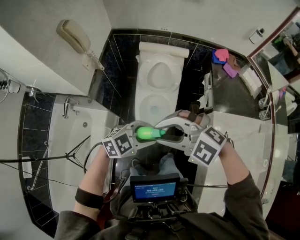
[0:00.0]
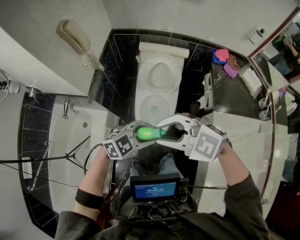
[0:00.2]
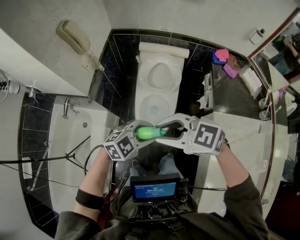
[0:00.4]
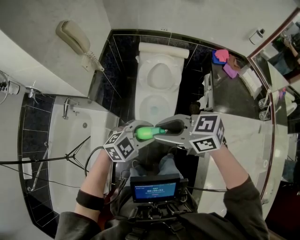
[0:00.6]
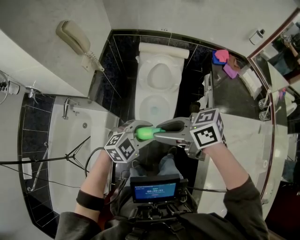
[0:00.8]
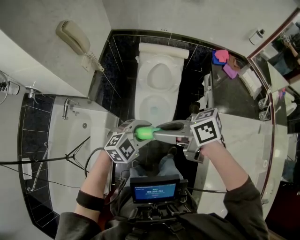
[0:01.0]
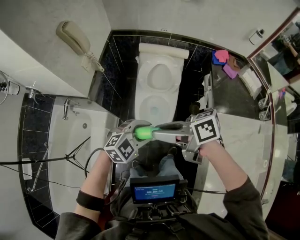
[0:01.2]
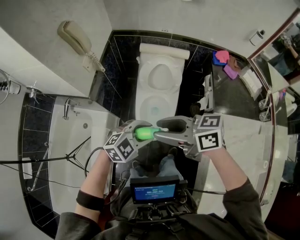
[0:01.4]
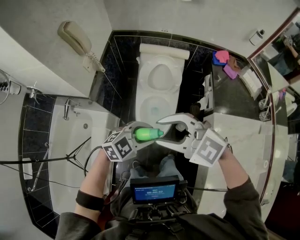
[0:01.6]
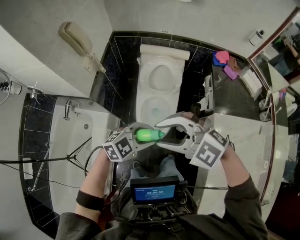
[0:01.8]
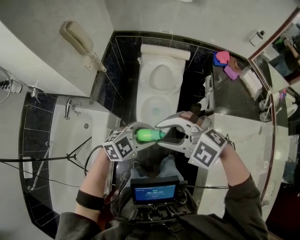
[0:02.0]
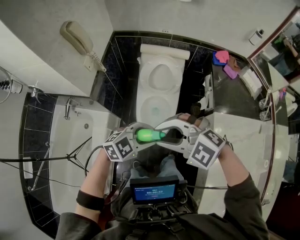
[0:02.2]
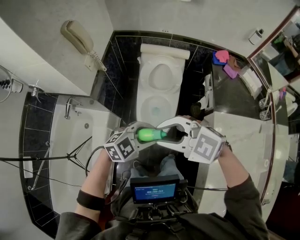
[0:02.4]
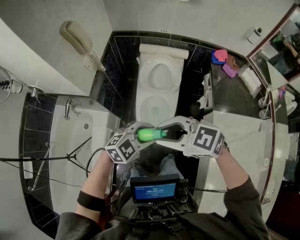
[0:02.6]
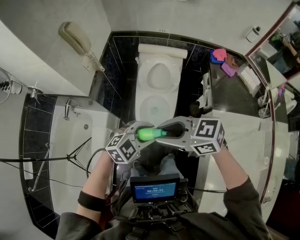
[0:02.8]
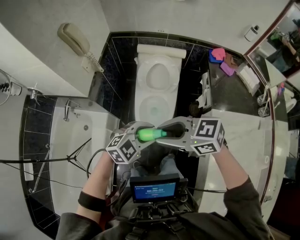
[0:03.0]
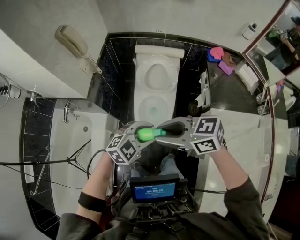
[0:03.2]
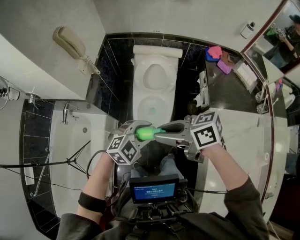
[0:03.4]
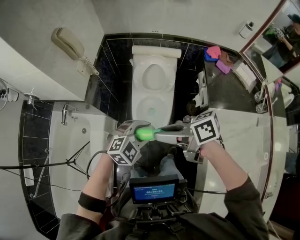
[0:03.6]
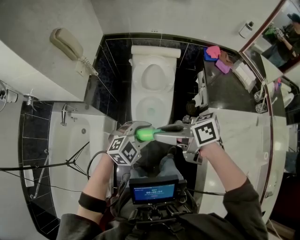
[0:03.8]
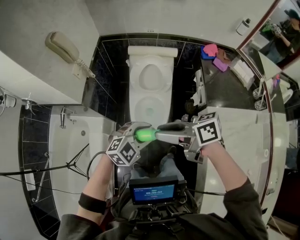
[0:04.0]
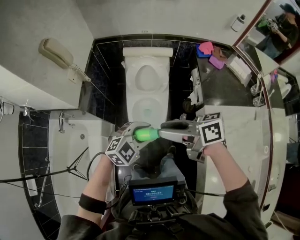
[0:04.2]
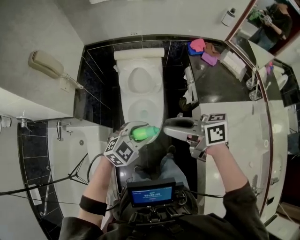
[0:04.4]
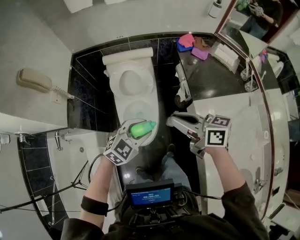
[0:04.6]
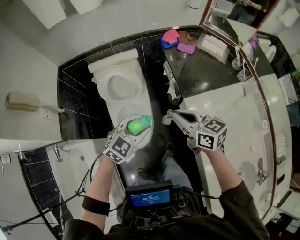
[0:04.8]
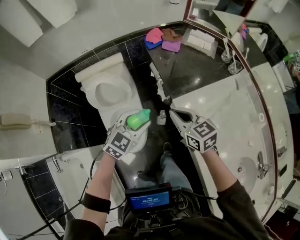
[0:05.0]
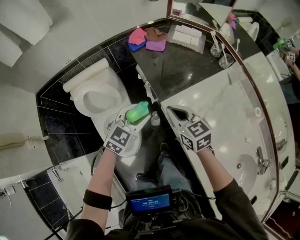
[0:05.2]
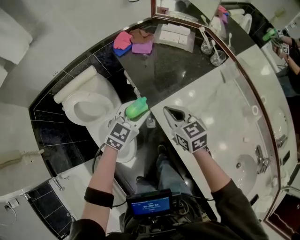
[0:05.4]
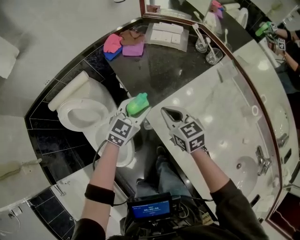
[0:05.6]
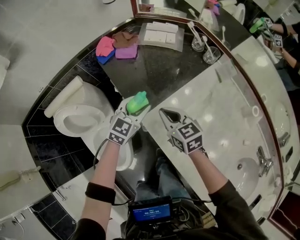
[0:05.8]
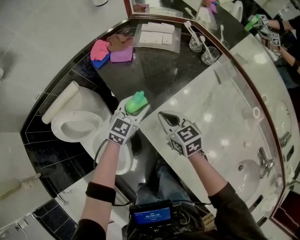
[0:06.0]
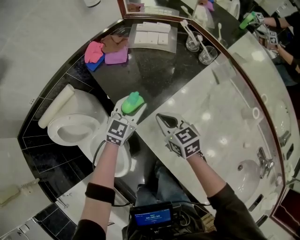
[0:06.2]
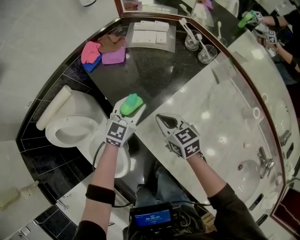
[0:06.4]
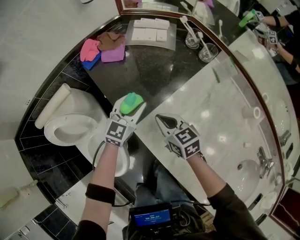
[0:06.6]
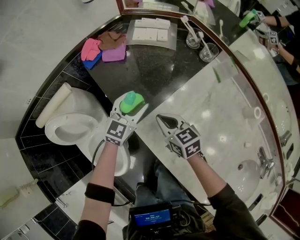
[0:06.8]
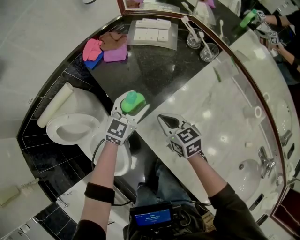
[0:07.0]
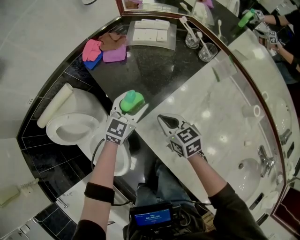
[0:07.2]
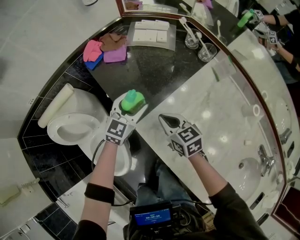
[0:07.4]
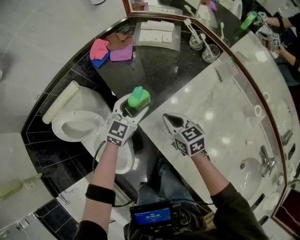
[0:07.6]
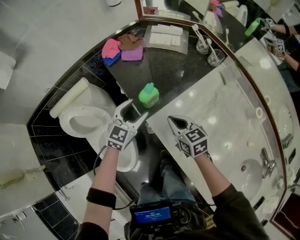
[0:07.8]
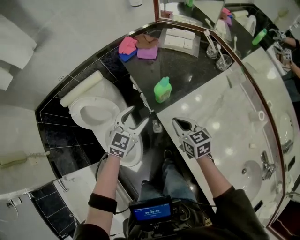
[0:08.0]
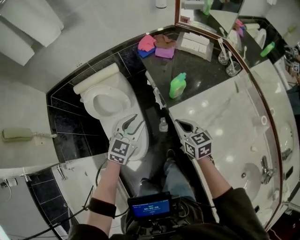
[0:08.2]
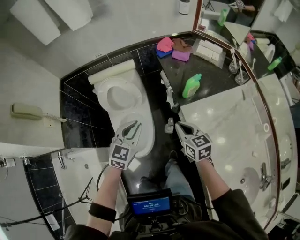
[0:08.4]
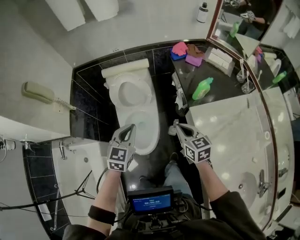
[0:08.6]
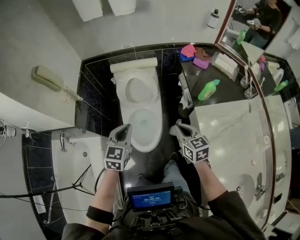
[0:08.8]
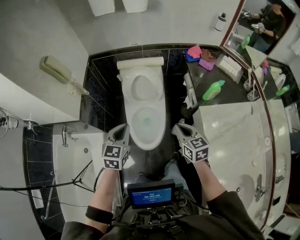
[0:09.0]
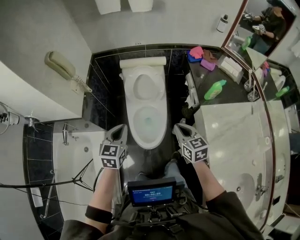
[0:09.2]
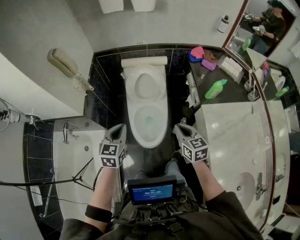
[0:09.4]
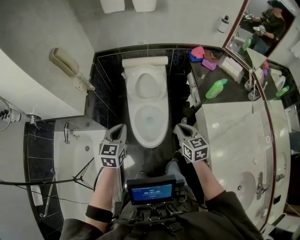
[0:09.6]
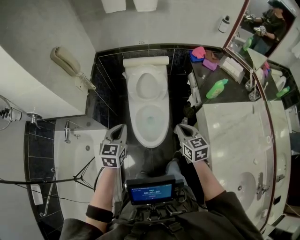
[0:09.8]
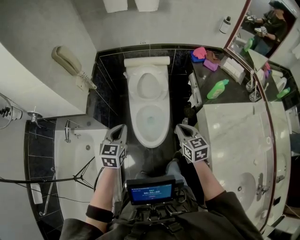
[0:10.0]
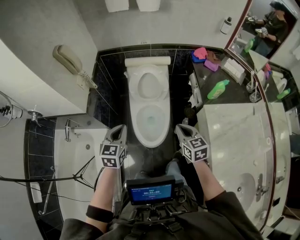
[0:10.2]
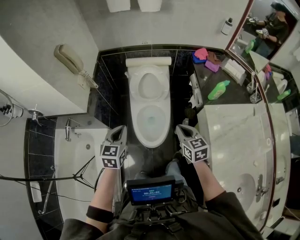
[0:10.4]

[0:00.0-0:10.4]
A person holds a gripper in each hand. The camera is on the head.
0:00.0 to 0:01.4: The right gripper rotates around the line of its fingers by approximately 70 degrees, clockwise from behind.
0:01.4 to 0:03.0: The right gripper swivels some 20 degrees.
0:03.0 to 0:04.4: The left gripper moves roughly 5 cm. Meanwhile the right gripper moves roughly 10 cm, and rotates roughly 40 degrees.
0:04.4 to 0:06.0: Both grippers are carried roughly 50 cm. The right gripper rotates about 60 degrees, and closes.
0:06.0 to 0:07.4: The grippers make only small movements.
0:07.4 to 0:09.0: The left gripper shifts by approximately 60 cm, changes its angle by some 50 degrees, and closes. The right gripper moves about 40 cm, and swivels roughly 20 degrees.
0:09.0 to 0:10.4: The left gripper shifts some 5 cm to the left, while the right gripper changes place by about 5 cm.

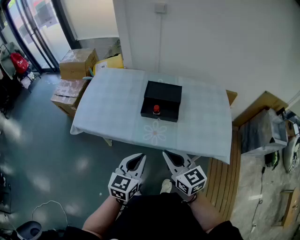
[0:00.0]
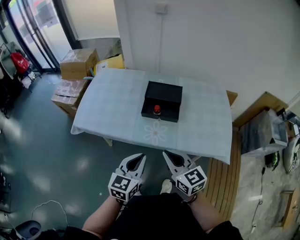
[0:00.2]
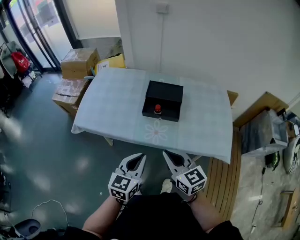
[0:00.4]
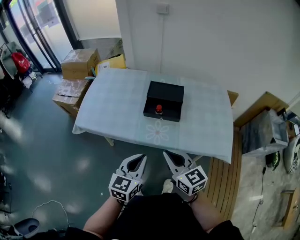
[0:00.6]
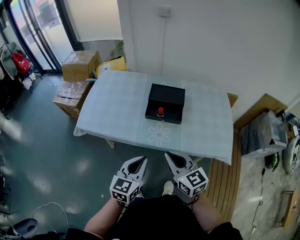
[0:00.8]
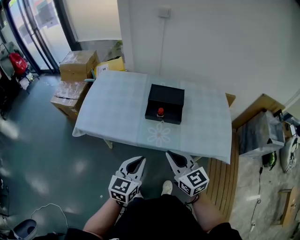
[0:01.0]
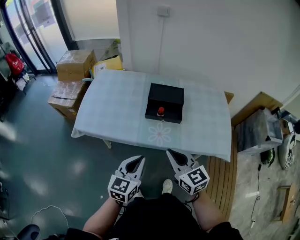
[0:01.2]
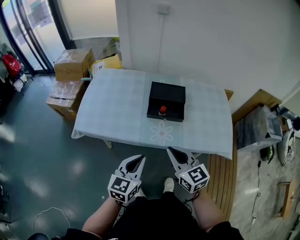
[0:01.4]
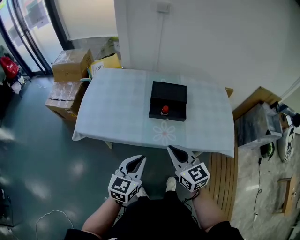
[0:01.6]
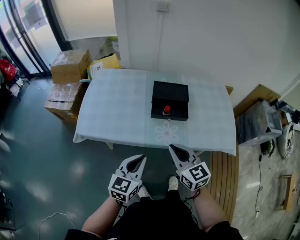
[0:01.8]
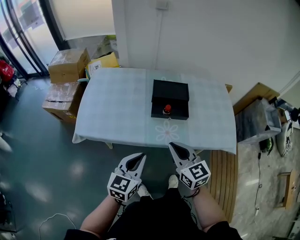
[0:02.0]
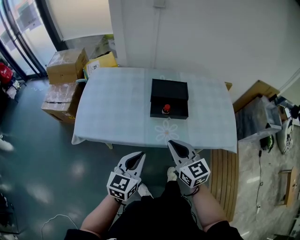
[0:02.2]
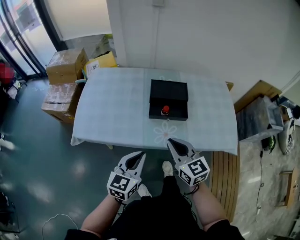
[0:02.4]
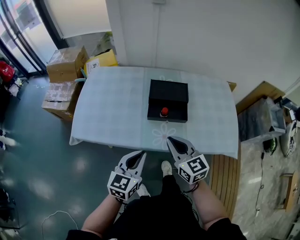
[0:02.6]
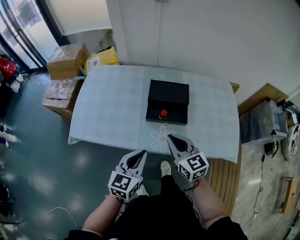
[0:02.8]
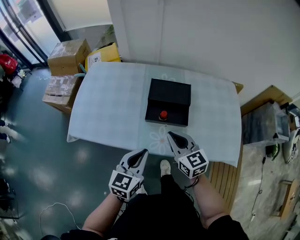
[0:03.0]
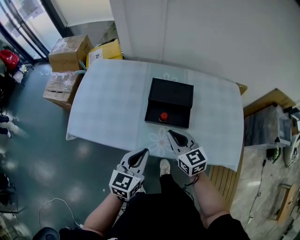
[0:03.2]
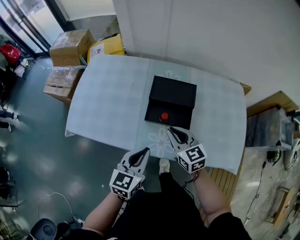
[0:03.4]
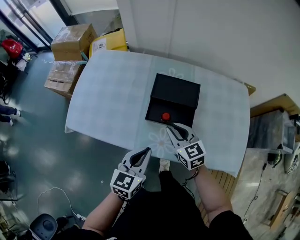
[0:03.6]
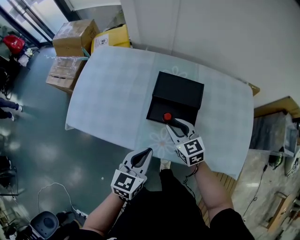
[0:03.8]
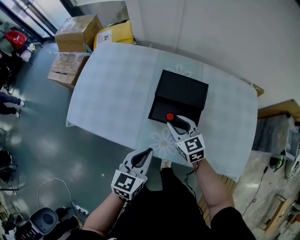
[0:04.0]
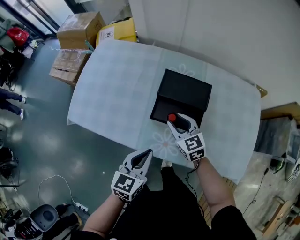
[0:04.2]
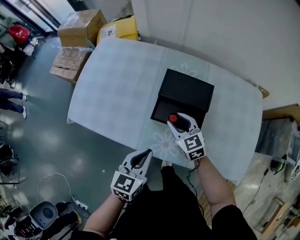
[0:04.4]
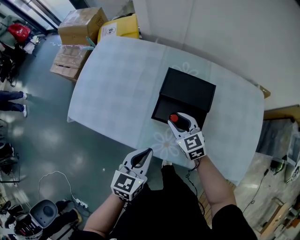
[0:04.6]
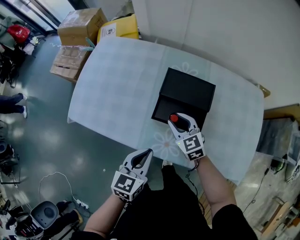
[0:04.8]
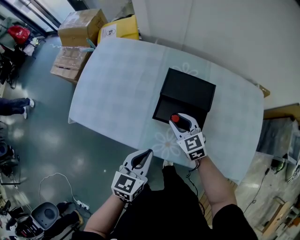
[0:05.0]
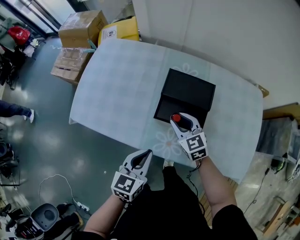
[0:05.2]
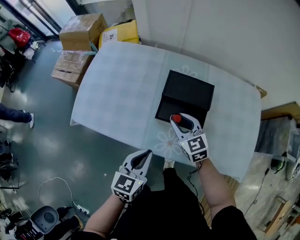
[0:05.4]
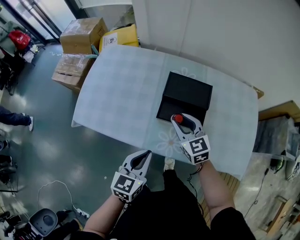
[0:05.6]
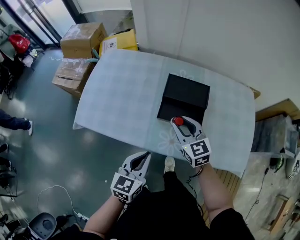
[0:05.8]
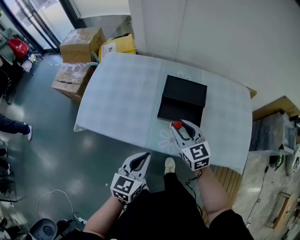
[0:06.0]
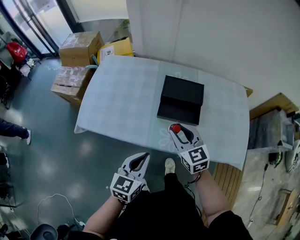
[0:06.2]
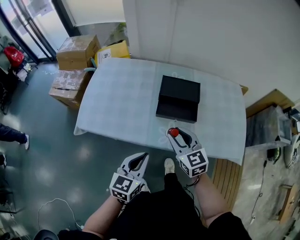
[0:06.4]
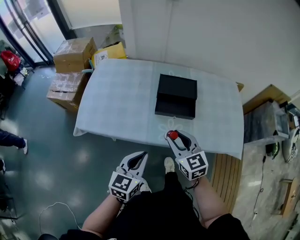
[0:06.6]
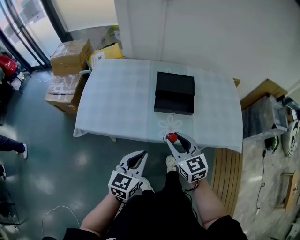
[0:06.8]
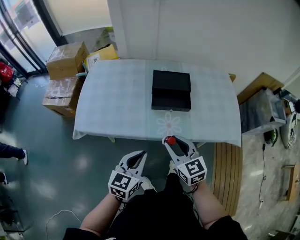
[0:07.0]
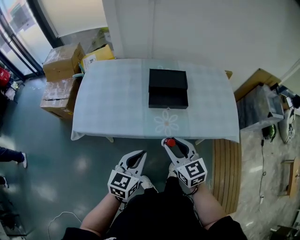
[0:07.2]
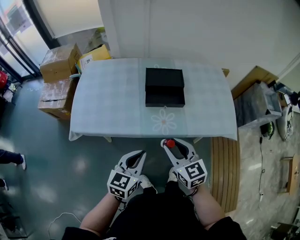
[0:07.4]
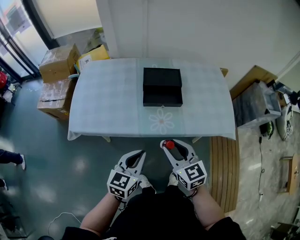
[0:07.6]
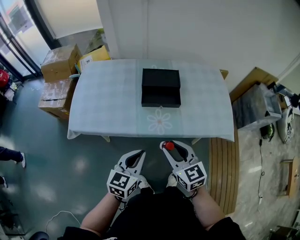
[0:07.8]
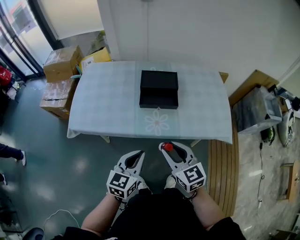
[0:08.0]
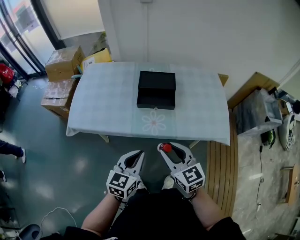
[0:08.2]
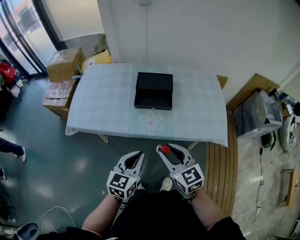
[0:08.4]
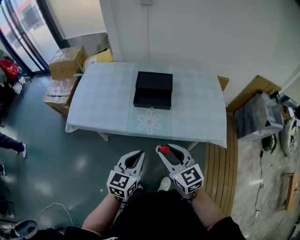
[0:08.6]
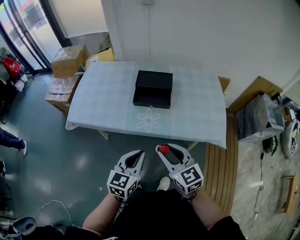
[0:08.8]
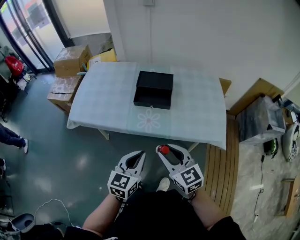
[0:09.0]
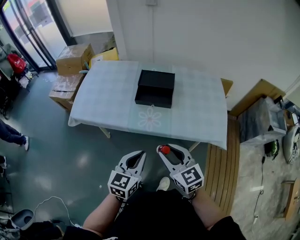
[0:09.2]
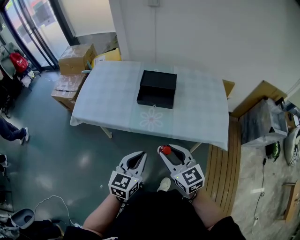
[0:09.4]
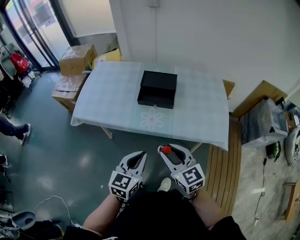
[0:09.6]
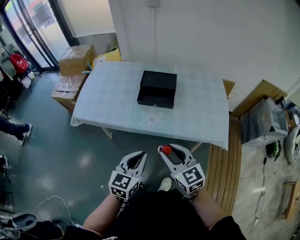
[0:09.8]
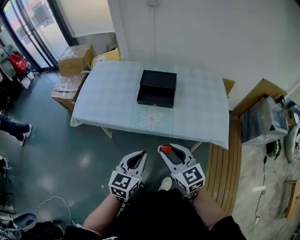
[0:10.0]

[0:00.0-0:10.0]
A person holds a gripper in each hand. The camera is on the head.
0:00.0 to 0:01.4: The left gripper heads to the left, covering some 5 cm, while the right gripper shifts by approximately 5 cm.
0:01.4 to 0:02.8: The grippers both shift forward by some 10 cm.
0:02.8 to 0:04.2: The right gripper is displaced forward and downward by approximately 20 cm, and opens its fingers. Meanwhile the left gripper is displaced downward and forward by about 10 cm.
0:04.2 to 0:05.8: The right gripper shifts roughly 10 cm upward; the left gripper travels to the left by about 5 cm.
0:05.8 to 0:07.2: The right gripper goes approximately 20 cm backward, while the left gripper moves backward, approximately 10 cm.
0:07.2 to 0:08.6: The left gripper is displaced to the right by approximately 10 cm. The right gripper travels to the right and backward by roughly 10 cm.
0:08.6 to 0:10.0: The grippers move only a little.

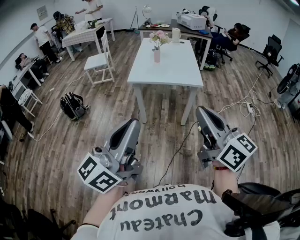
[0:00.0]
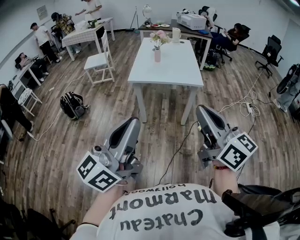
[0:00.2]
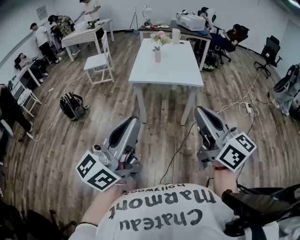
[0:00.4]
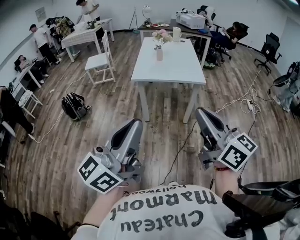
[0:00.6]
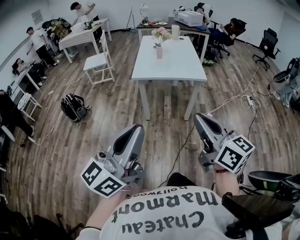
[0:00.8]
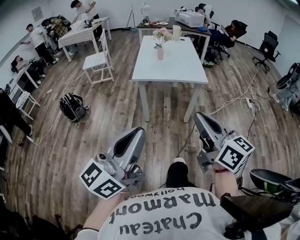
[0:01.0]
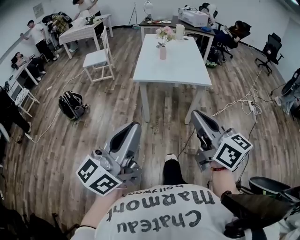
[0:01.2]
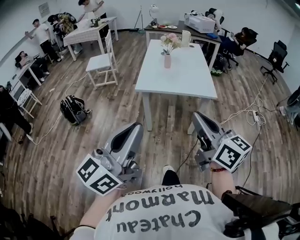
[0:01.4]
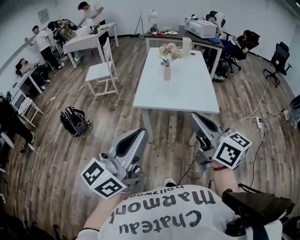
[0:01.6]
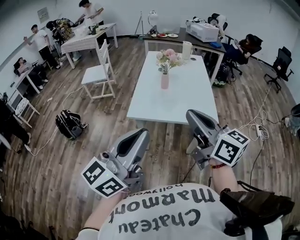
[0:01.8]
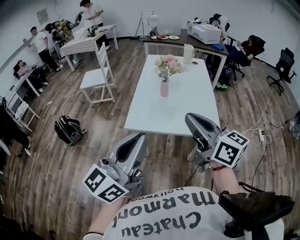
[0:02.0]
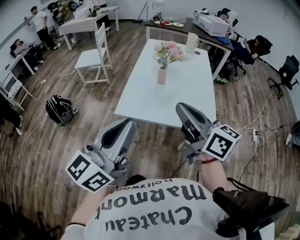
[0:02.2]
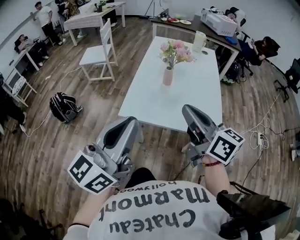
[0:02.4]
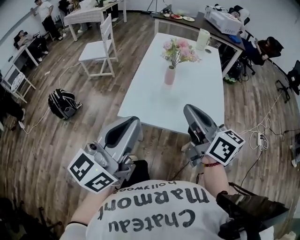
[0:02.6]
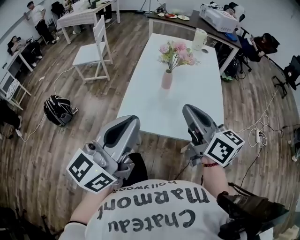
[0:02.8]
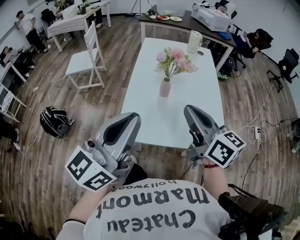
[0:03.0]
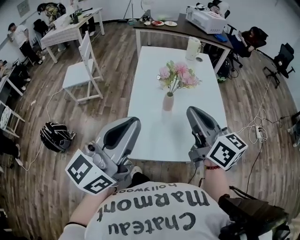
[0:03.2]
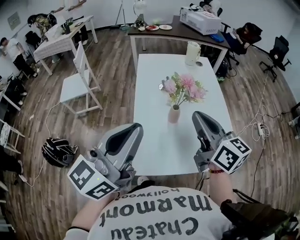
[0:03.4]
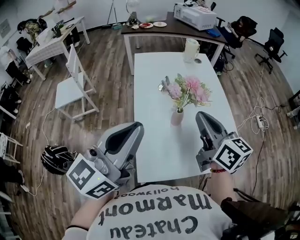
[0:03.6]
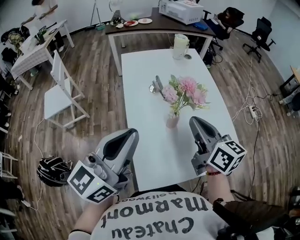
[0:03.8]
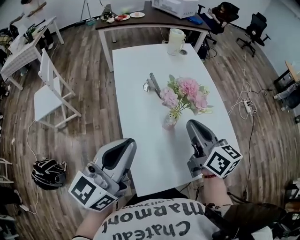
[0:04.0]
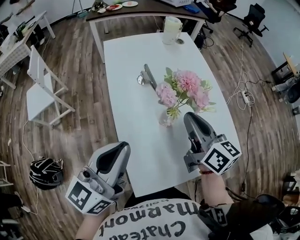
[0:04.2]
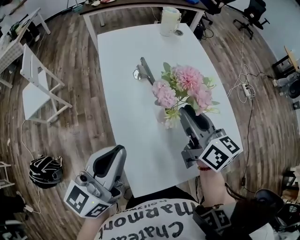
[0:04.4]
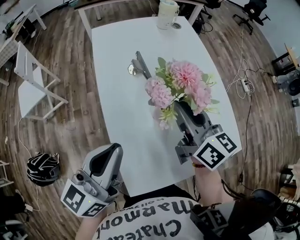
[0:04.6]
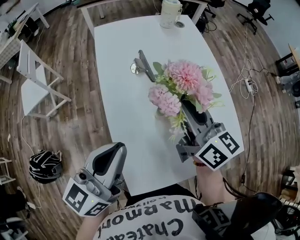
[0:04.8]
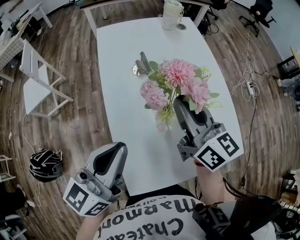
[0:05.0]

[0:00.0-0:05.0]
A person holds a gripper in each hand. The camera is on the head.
0:00.0 to 0:01.6: Both grippers travel together forward, about 20 cm.
0:01.6 to 0:03.4: Both grippers are carried forward, some 40 cm.
0:03.4 to 0:05.0: The left gripper heads downward and forward, covering some 20 cm. Meanwhile the right gripper moves forward and downward, some 15 cm.
